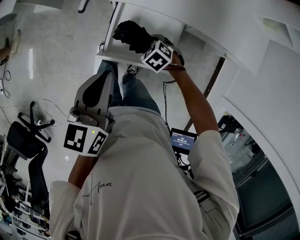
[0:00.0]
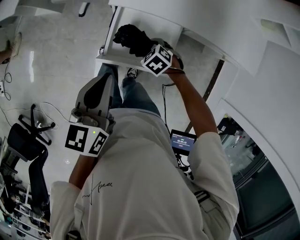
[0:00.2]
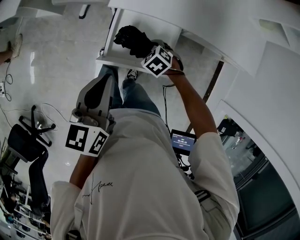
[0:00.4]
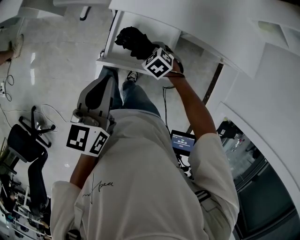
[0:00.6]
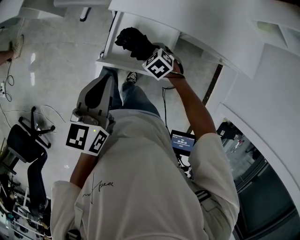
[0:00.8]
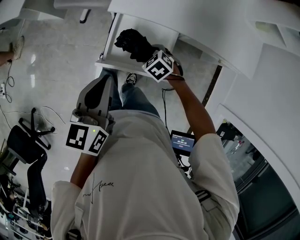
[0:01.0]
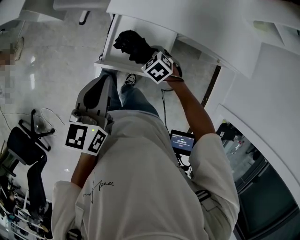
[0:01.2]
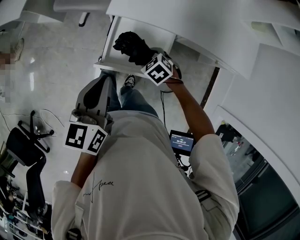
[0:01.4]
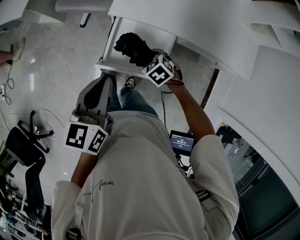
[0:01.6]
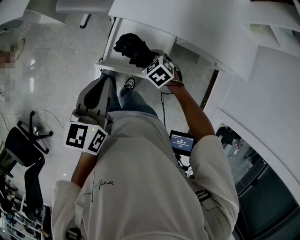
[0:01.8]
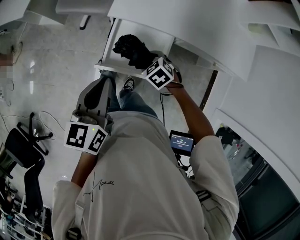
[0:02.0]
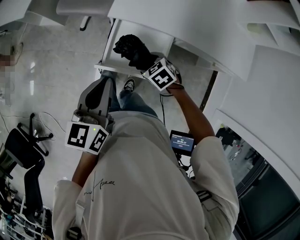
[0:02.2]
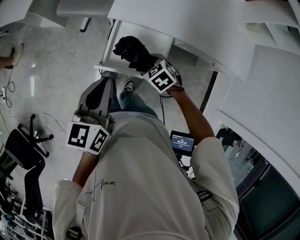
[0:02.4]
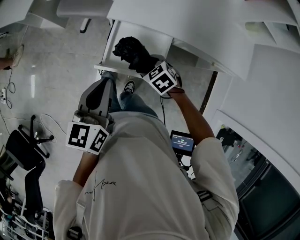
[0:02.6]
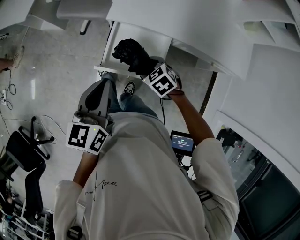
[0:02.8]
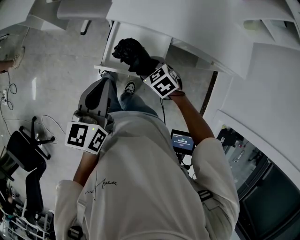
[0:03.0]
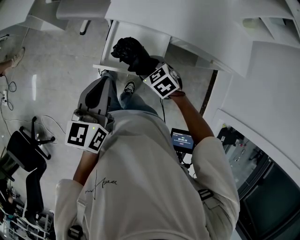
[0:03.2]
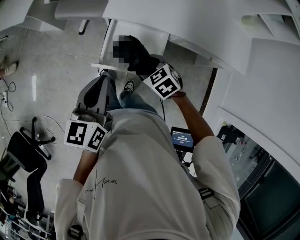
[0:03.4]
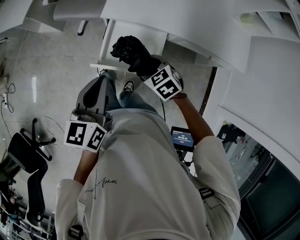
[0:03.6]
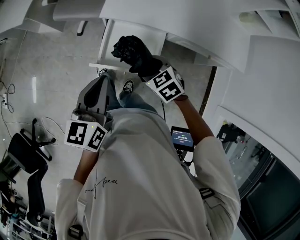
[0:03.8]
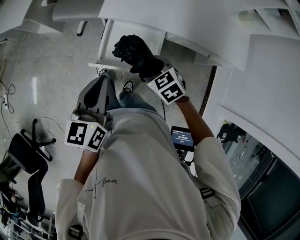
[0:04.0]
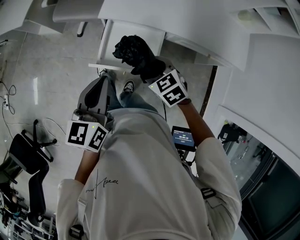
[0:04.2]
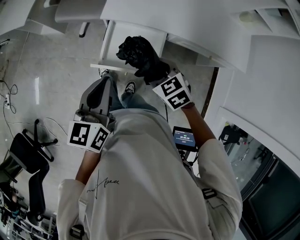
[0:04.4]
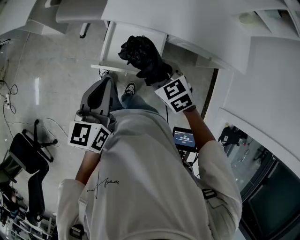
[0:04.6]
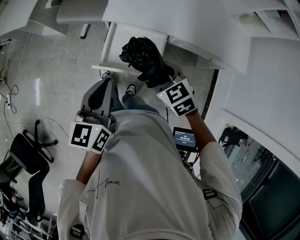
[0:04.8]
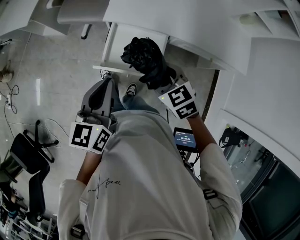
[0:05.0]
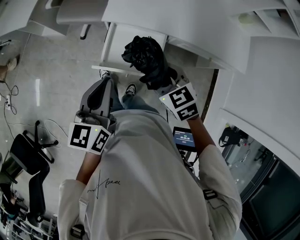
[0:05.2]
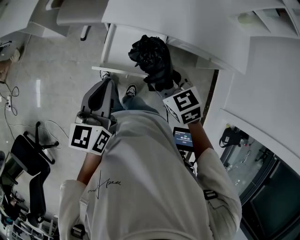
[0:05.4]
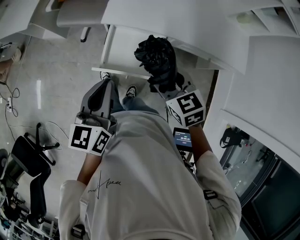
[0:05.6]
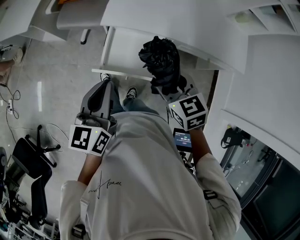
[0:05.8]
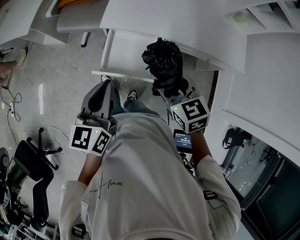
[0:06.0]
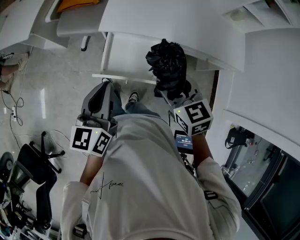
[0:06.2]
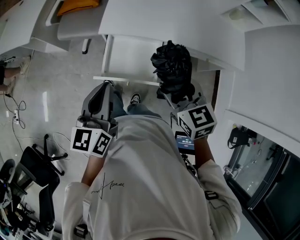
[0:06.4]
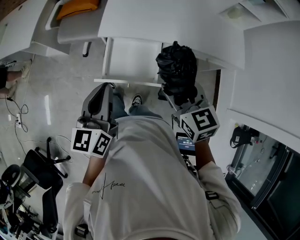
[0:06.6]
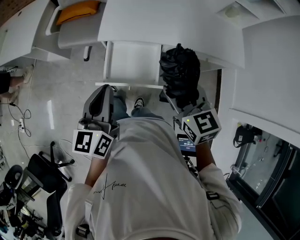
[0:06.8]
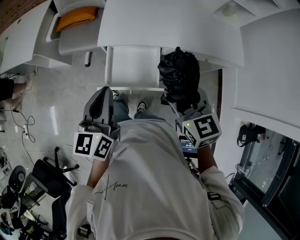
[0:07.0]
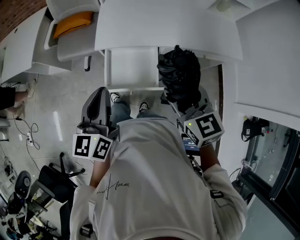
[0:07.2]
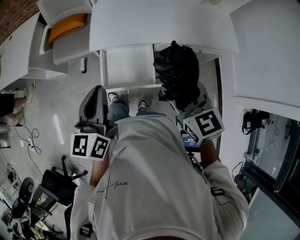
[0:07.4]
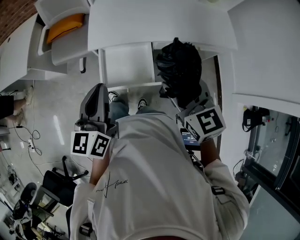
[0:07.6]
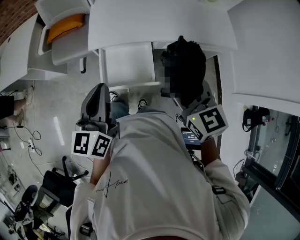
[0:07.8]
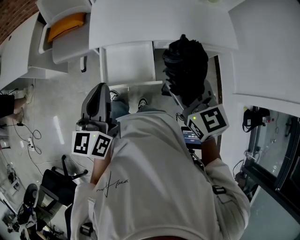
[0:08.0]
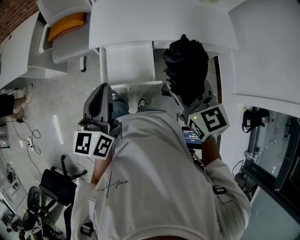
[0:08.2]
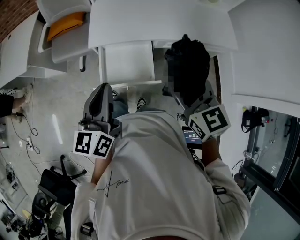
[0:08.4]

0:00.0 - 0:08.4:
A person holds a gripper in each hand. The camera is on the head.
0:00.0 - 0:01.4: The grippers stay close to where they were, moving slightly.
0:01.4 - 0:02.8: The right gripper goes approximately 5 cm upward.
0:02.8 - 0:04.2: The right gripper heads upward, covering about 5 cm.
0:04.2 - 0:05.6: The right gripper goes about 10 cm upward.
0:05.6 - 0:07.0: The right gripper is displaced upward by roughly 10 cm, and changes its angle by some 20 degrees.
0:07.0 - 0:08.4: The grippers make only small movements.

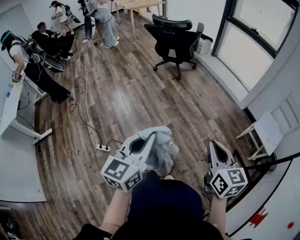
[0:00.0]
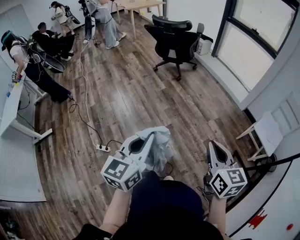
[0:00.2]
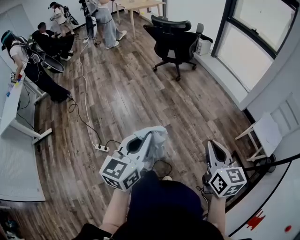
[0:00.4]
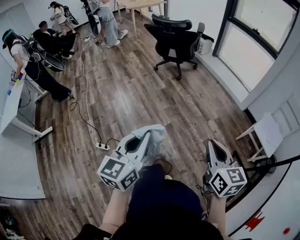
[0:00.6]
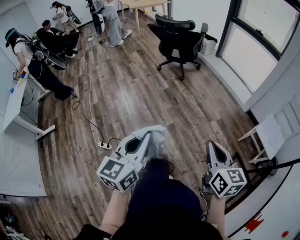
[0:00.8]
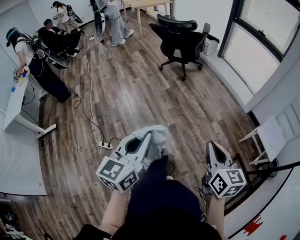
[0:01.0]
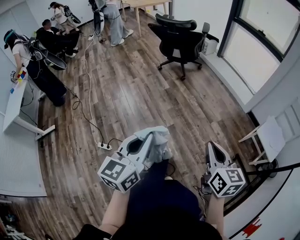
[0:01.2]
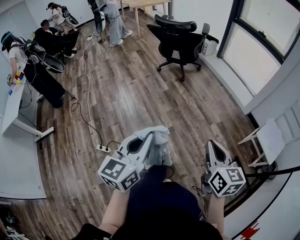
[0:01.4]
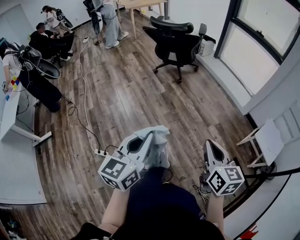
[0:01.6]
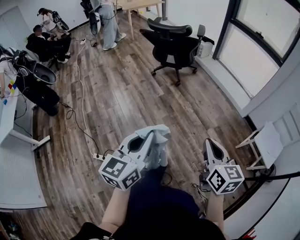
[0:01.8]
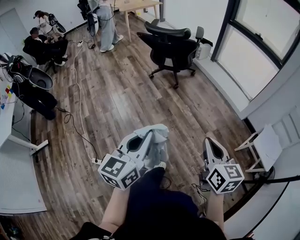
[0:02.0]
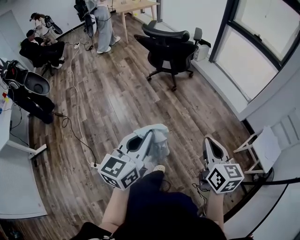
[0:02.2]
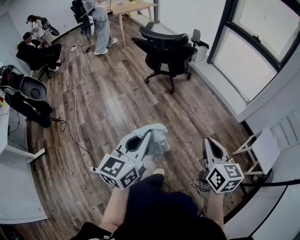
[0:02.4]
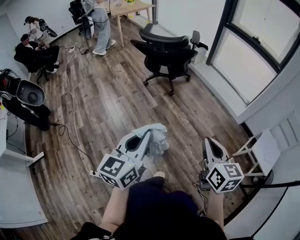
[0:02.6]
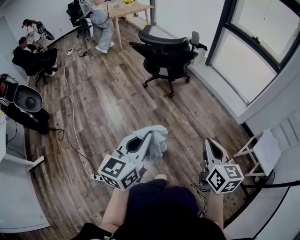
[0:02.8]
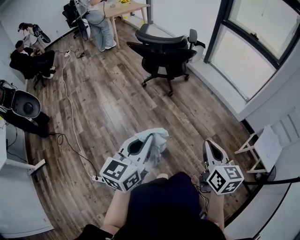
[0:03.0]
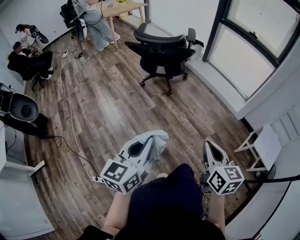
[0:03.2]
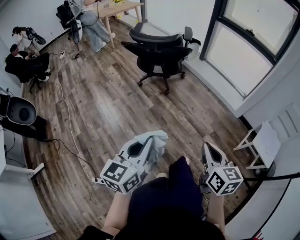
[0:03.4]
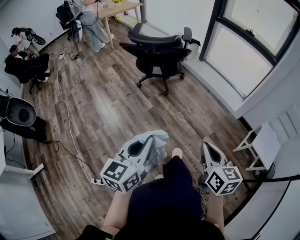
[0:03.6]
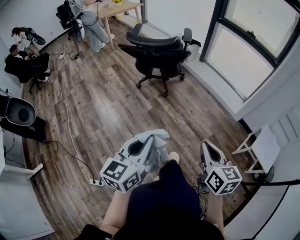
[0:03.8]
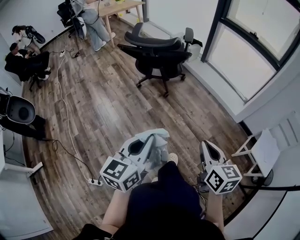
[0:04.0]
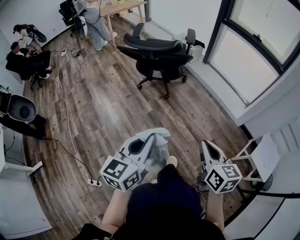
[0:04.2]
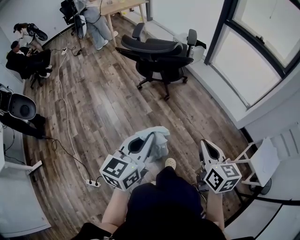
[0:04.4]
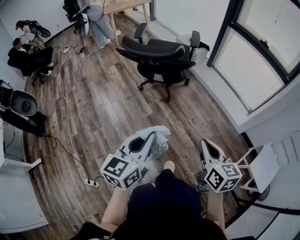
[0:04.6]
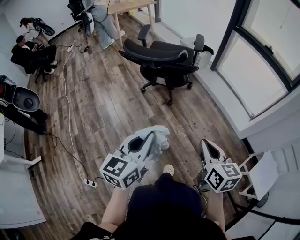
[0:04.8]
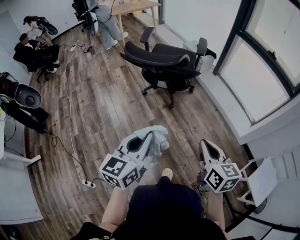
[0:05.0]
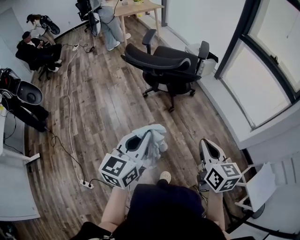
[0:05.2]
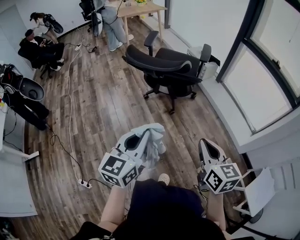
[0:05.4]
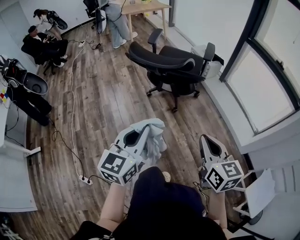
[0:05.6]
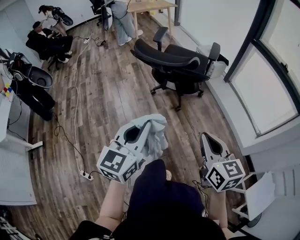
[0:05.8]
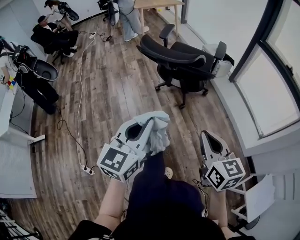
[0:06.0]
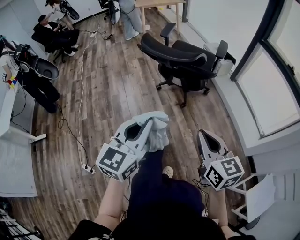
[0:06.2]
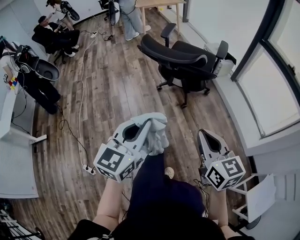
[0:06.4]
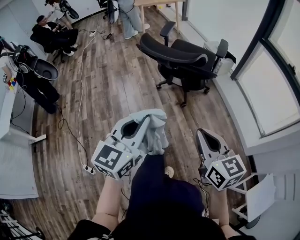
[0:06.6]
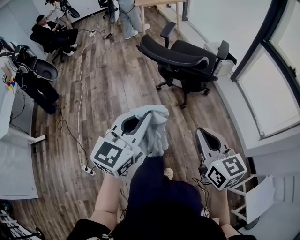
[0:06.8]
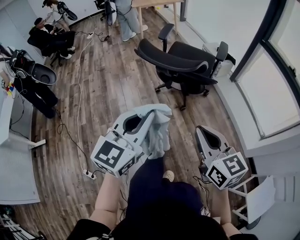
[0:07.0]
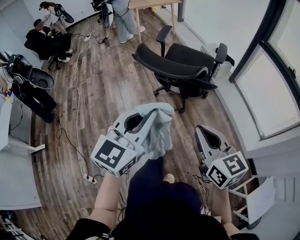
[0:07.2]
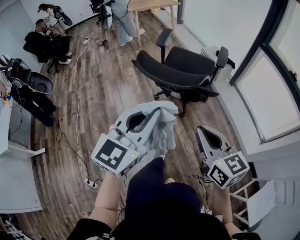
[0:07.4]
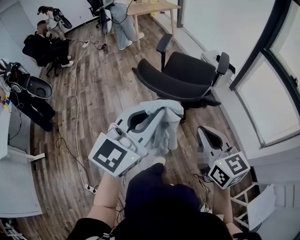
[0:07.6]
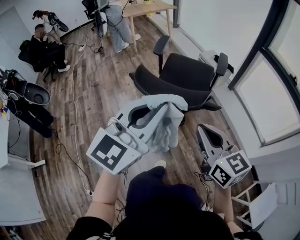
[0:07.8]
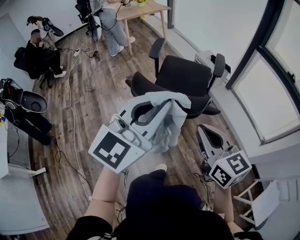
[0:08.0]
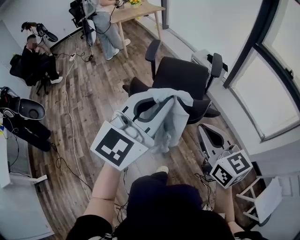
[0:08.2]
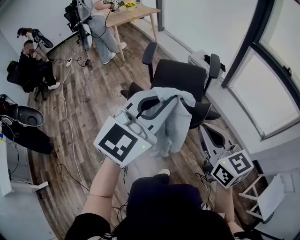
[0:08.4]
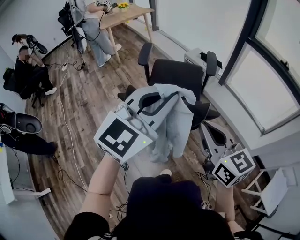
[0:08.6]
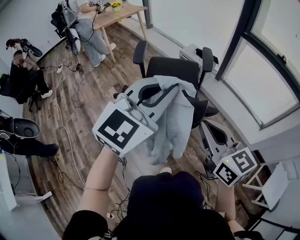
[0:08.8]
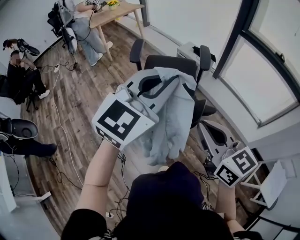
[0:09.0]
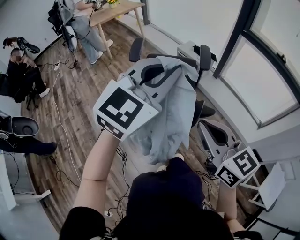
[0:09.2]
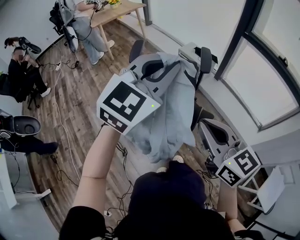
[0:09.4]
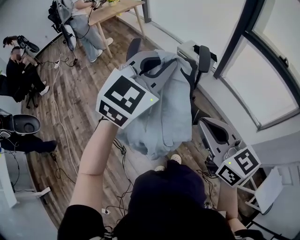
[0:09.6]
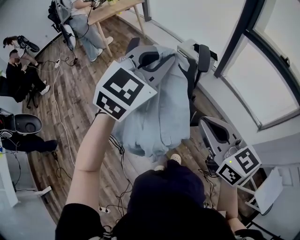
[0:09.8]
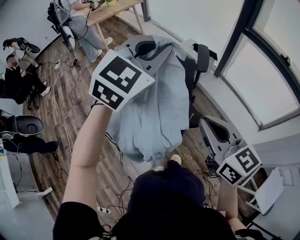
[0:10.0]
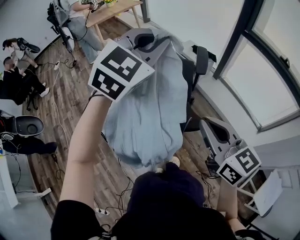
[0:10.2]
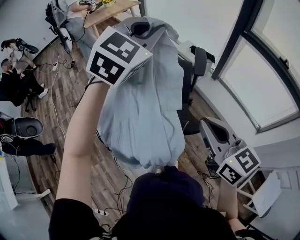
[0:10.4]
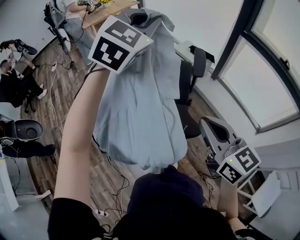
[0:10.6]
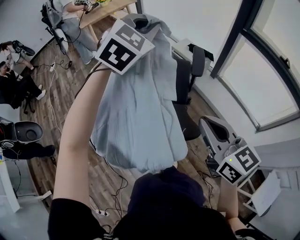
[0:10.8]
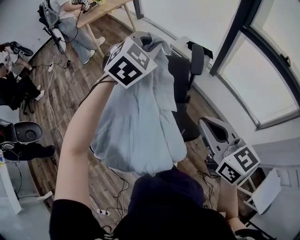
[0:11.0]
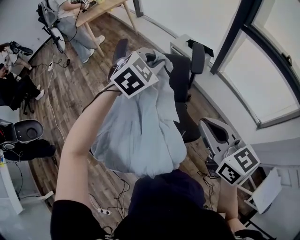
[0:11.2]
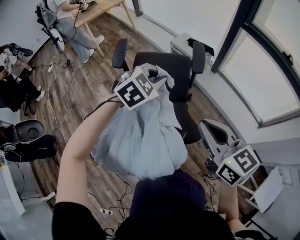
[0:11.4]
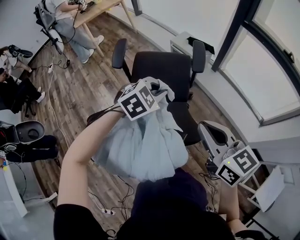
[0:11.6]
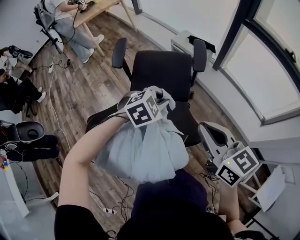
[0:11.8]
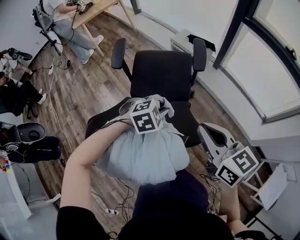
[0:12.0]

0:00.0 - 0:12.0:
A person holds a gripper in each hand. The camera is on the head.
0:00.0 - 0:01.6: The two grippers go some 10 cm forward.
0:01.6 - 0:03.0: Both grippers travel together forward, approximately 20 cm.
0:03.0 - 0:04.4: Both grippers move forward, roughly 15 cm.
0:04.4 - 0:06.0: Both grippers travel together forward, approximately 10 cm. The left gripper changes its angle by some 20 degrees. The right gripper turns by some 20 degrees.
0:06.0 - 0:07.6: The right gripper is displaced forward by roughly 20 cm. The left gripper moves forward and upward, some 20 cm.
0:07.6 - 0:09.0: The left gripper moves forward, approximately 20 cm, and turns by roughly 20 degrees, while the right gripper is displaced forward by some 10 cm.
0:09.0 - 0:10.4: The right gripper moves forward and to the right, about 15 cm. The left gripper moves forward, approximately 20 cm, and changes its angle by roughly 20 degrees.
0:10.4 - 0:12.0: The right gripper travels downward and forward by about 10 cm. Meanwhile the left gripper heads downward, covering roughly 35 cm, and tips its fingers downward by approximately 50 degrees.

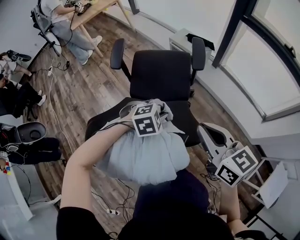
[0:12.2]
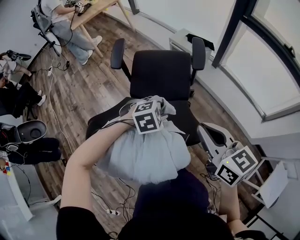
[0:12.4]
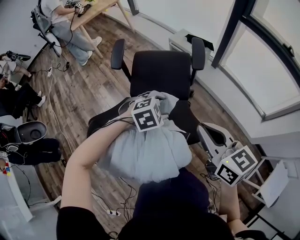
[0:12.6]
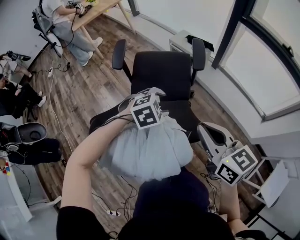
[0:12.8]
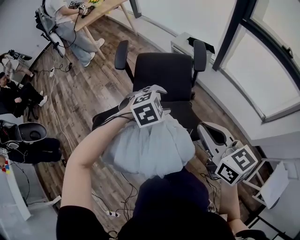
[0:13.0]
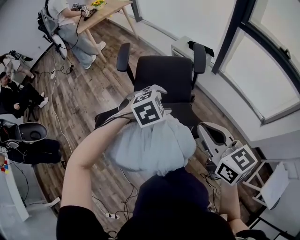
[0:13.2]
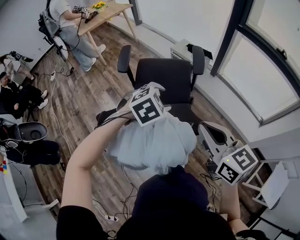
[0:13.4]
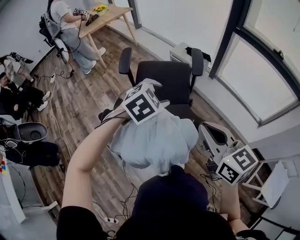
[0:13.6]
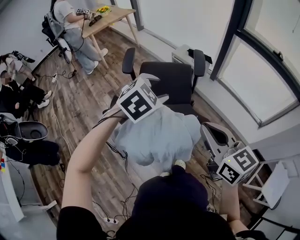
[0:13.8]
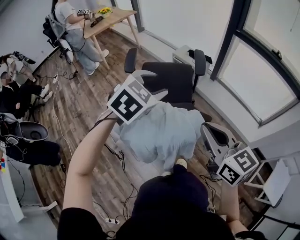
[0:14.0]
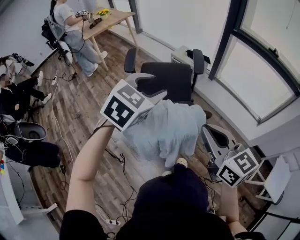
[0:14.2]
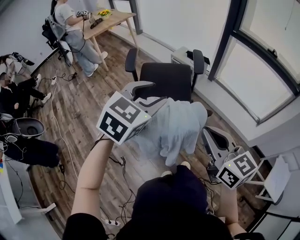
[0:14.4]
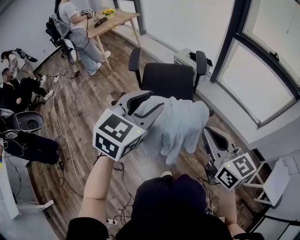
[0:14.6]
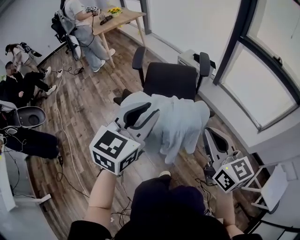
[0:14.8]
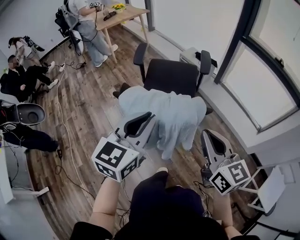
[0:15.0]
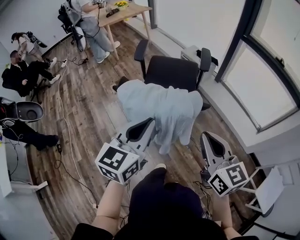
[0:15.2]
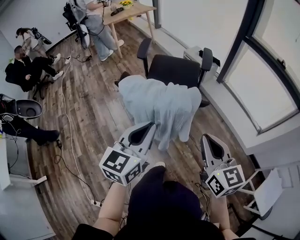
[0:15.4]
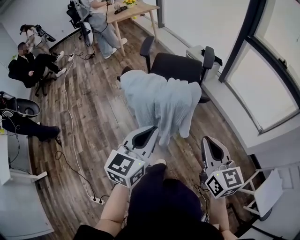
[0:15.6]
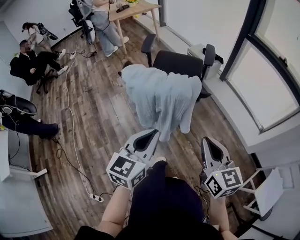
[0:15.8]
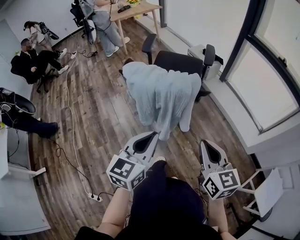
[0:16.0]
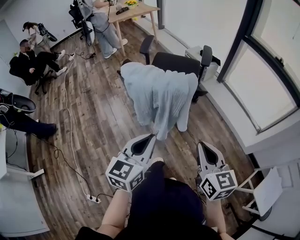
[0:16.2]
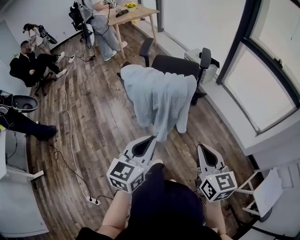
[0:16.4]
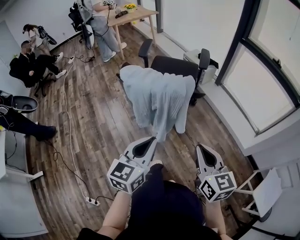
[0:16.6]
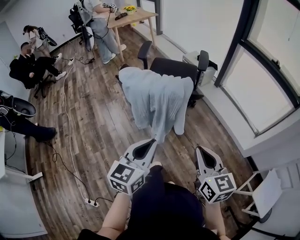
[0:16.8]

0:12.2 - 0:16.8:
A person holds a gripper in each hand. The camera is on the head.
0:12.2 - 0:13.8: The right gripper moves backward and upward, approximately 10 cm. The left gripper moves upward, about 20 cm, swivels approximately 30 degrees, and opens.
0:13.8 - 0:15.2: The right gripper moves backward, roughly 10 cm. The left gripper moves backward, roughly 25 cm, points its fingers approximately 30 degrees further upward, and closes its fingers.
0:15.2 - 0:16.8: The two grippers go approximately 15 cm backward and downward.
